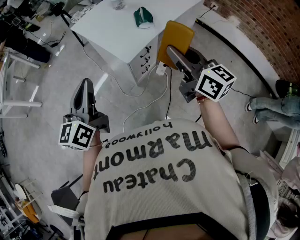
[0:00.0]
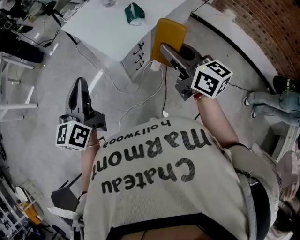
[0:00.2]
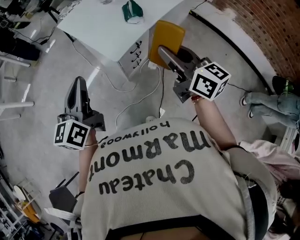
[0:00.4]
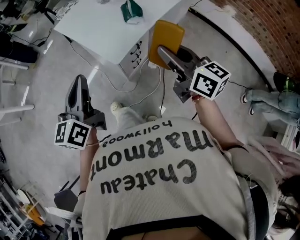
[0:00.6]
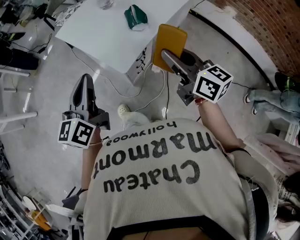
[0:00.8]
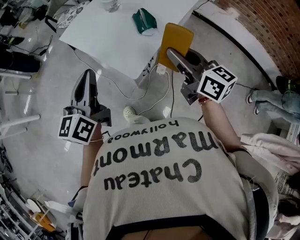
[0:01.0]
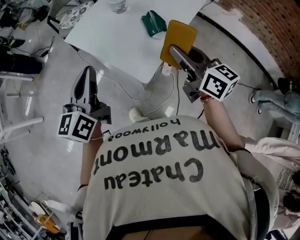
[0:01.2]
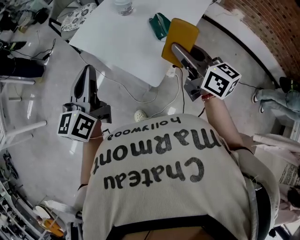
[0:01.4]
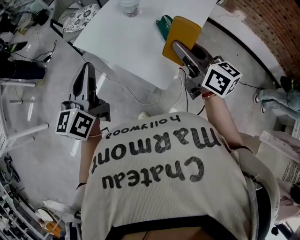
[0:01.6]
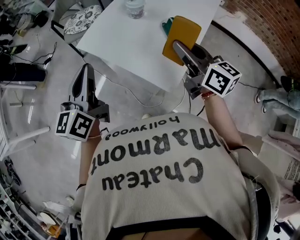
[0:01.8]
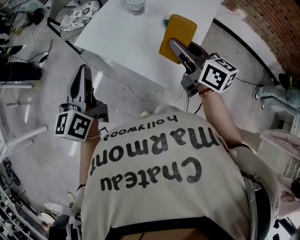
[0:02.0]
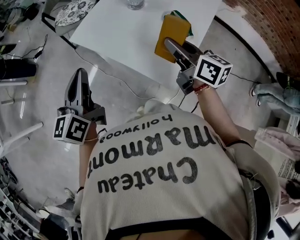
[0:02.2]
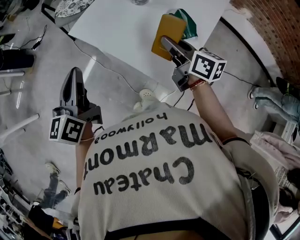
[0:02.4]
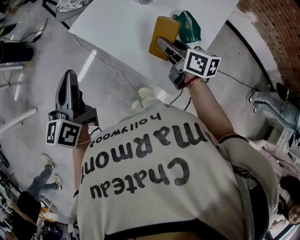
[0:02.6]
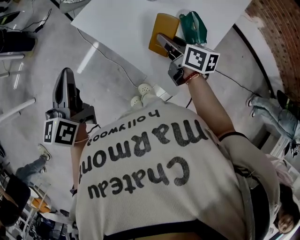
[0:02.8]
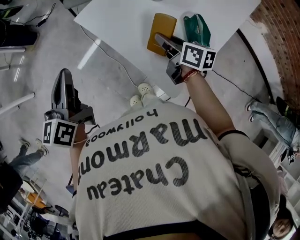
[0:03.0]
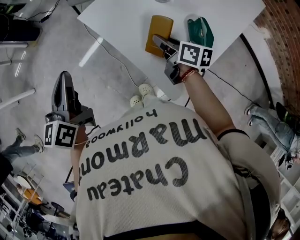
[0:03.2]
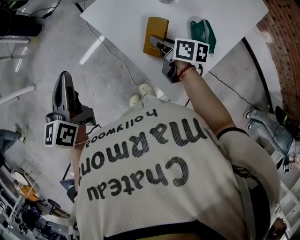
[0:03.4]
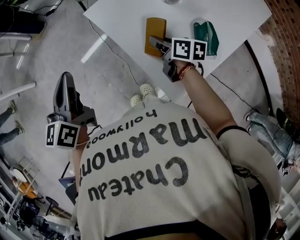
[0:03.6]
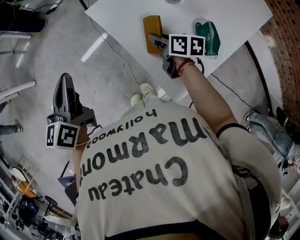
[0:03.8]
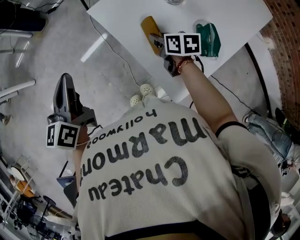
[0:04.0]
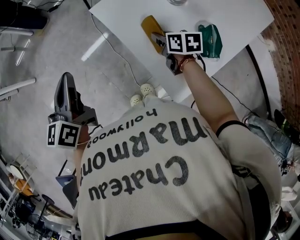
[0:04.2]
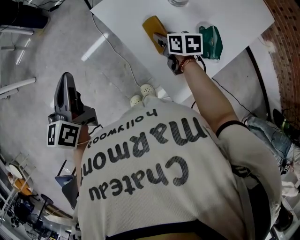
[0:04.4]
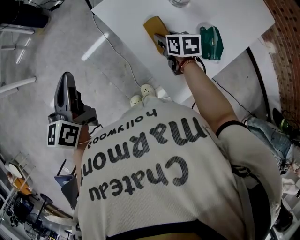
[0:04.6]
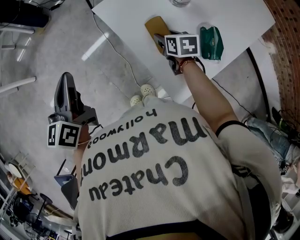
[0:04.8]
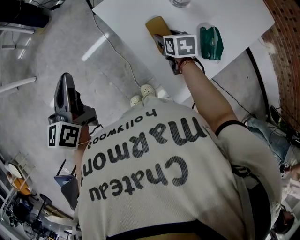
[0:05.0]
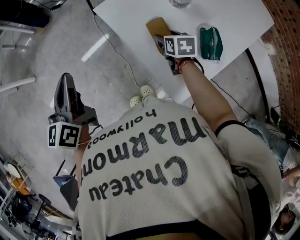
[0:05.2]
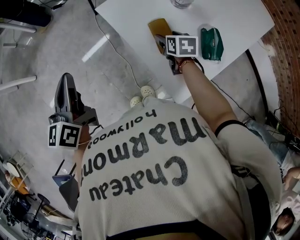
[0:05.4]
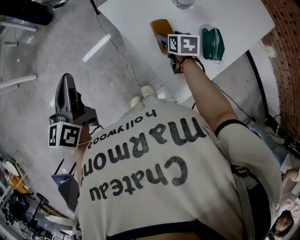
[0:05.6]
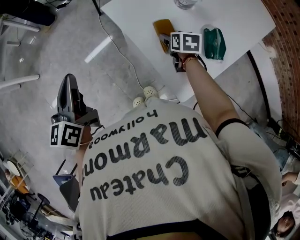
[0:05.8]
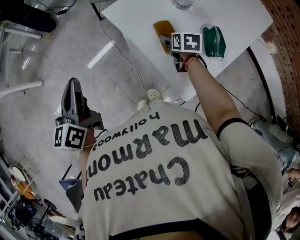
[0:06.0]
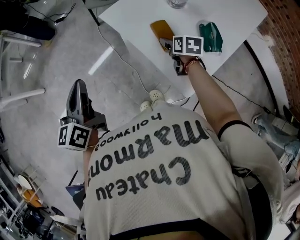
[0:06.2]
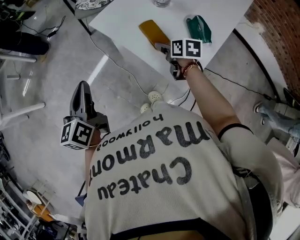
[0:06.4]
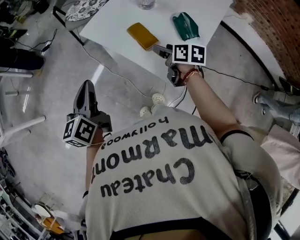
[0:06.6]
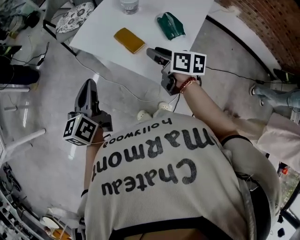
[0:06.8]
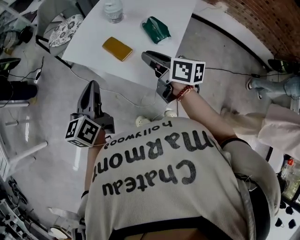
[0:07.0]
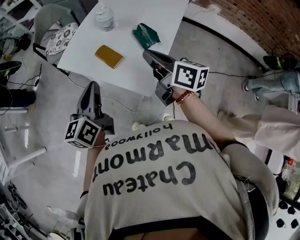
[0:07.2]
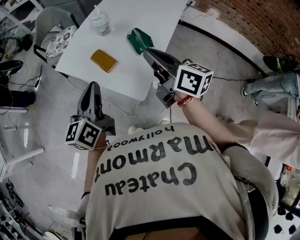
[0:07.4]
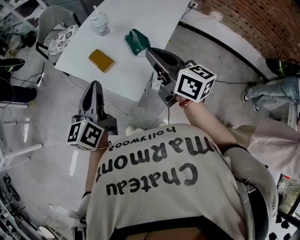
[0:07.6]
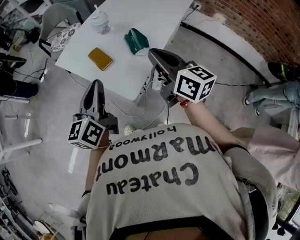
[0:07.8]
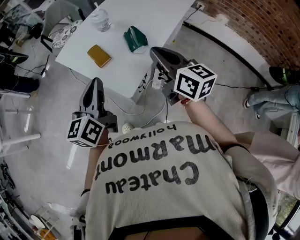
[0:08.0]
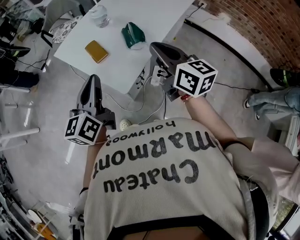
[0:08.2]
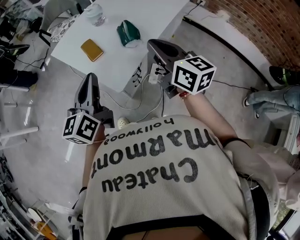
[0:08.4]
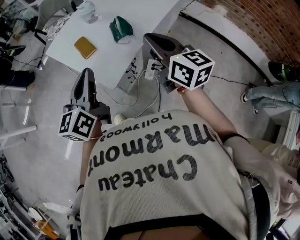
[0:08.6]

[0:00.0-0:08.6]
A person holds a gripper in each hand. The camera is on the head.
0:00.0 to 0:01.4: The grippers both shift forward by roughly 25 cm.
0:01.4 to 0:02.8: The left gripper heads to the left, forward and downward, covering approximately 20 cm; the right gripper travels forward, downward and to the left by about 25 cm, and turns by about 20 degrees.
0:02.8 to 0:04.4: The right gripper is displaced downward, forward and to the left by about 15 cm, and rotates roughly 30 degrees. Meanwhile the left gripper heads to the left, covering approximately 10 cm.
0:04.4 to 0:05.8: The right gripper opens its fingers.
0:05.8 to 0:07.2: The right gripper is displaced upward, backward and to the right by approximately 35 cm, points its fingers some 40 degrees further upward, and closes its fingers; the left gripper moves to the right, roughly 25 cm, and turns by about 40 degrees.
0:07.2 to 0:08.6: The left gripper travels to the right and backward by some 20 cm; the right gripper goes about 15 cm to the right, and rotates approximately 20 degrees.

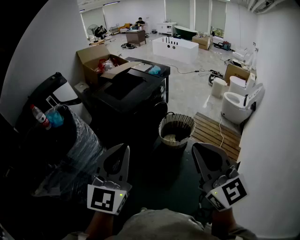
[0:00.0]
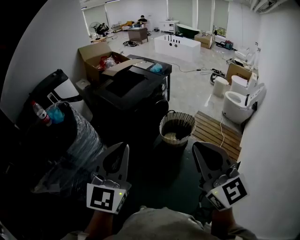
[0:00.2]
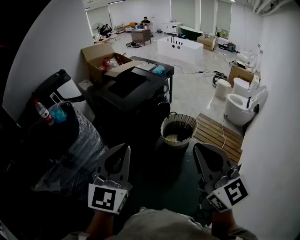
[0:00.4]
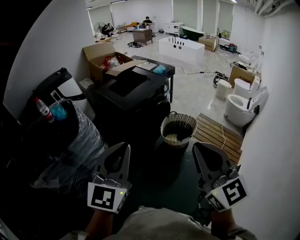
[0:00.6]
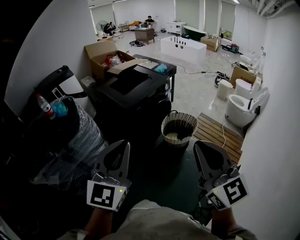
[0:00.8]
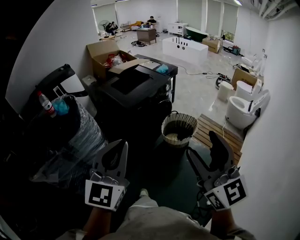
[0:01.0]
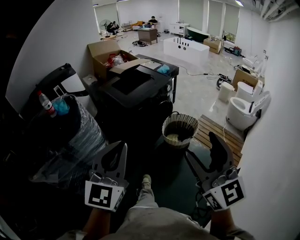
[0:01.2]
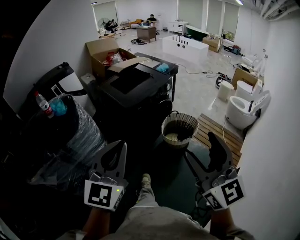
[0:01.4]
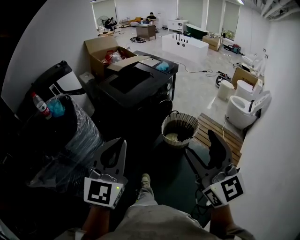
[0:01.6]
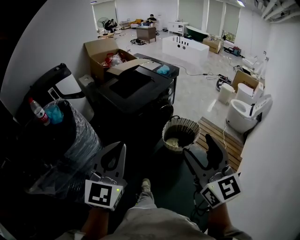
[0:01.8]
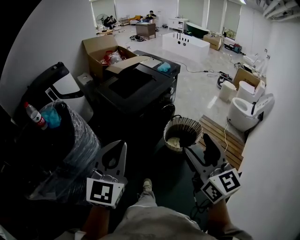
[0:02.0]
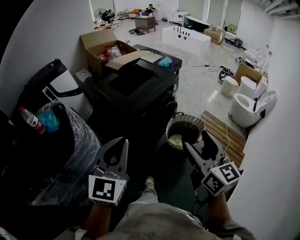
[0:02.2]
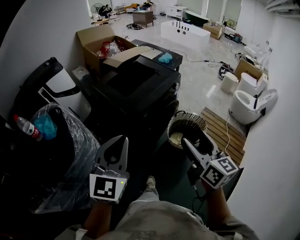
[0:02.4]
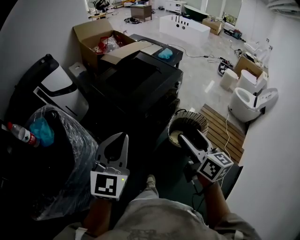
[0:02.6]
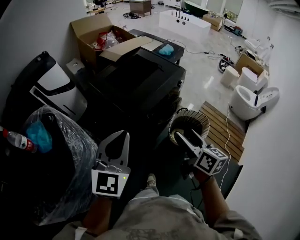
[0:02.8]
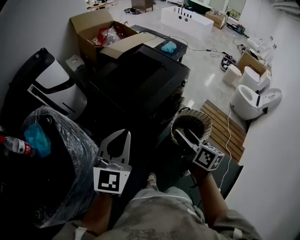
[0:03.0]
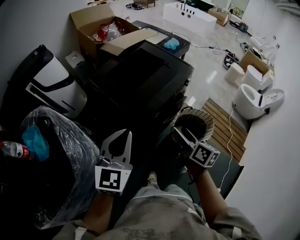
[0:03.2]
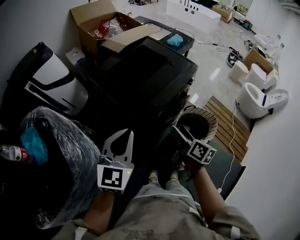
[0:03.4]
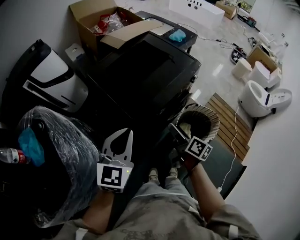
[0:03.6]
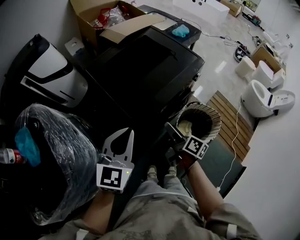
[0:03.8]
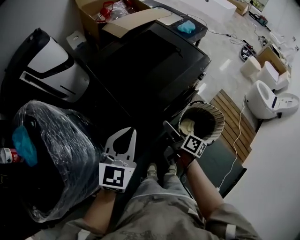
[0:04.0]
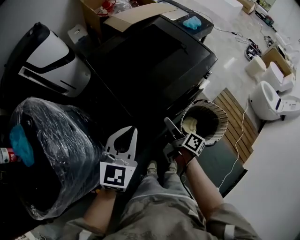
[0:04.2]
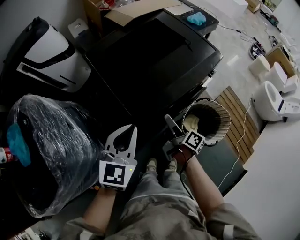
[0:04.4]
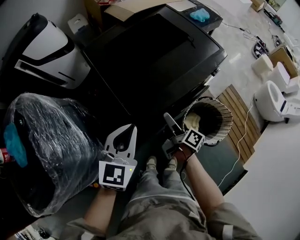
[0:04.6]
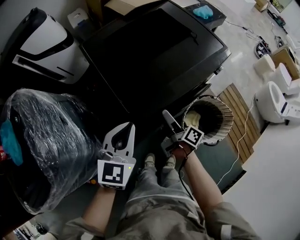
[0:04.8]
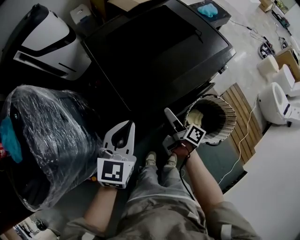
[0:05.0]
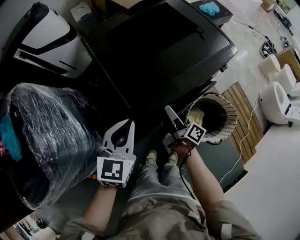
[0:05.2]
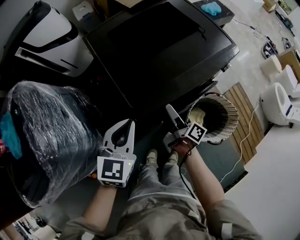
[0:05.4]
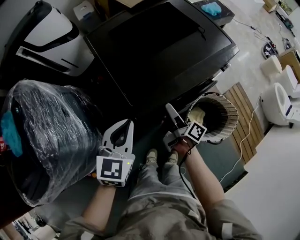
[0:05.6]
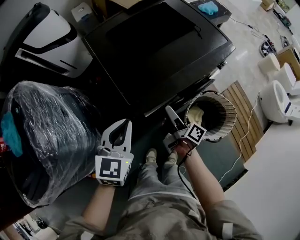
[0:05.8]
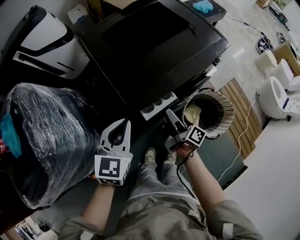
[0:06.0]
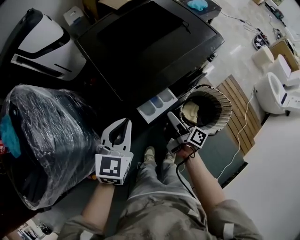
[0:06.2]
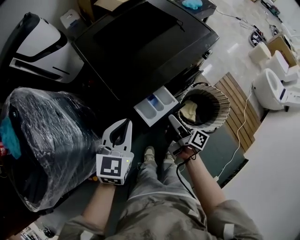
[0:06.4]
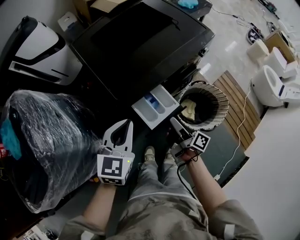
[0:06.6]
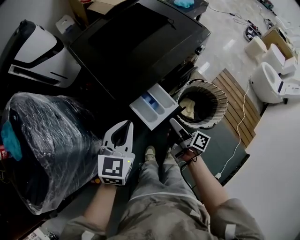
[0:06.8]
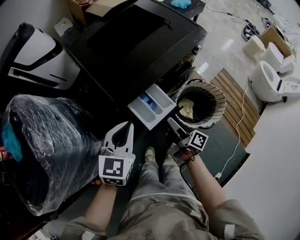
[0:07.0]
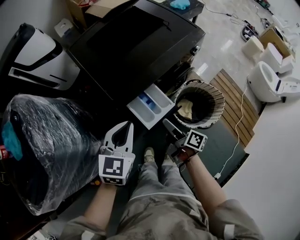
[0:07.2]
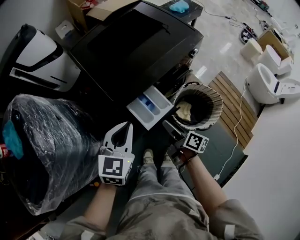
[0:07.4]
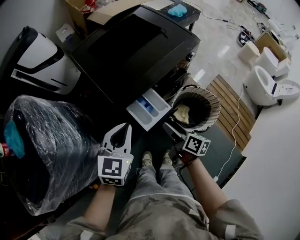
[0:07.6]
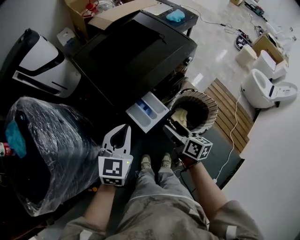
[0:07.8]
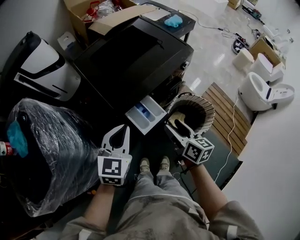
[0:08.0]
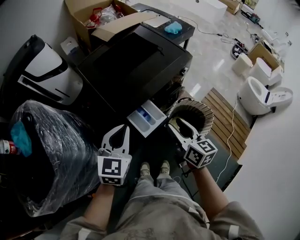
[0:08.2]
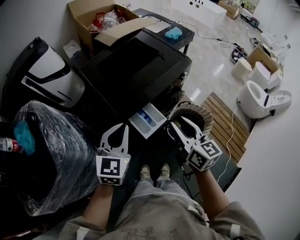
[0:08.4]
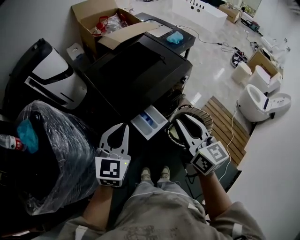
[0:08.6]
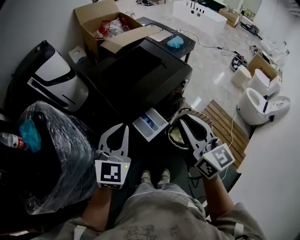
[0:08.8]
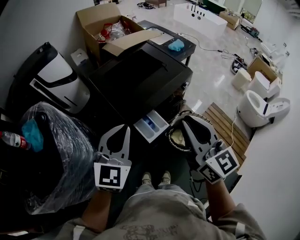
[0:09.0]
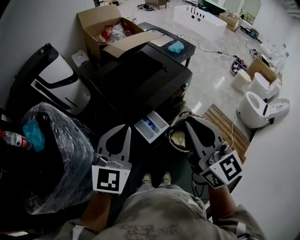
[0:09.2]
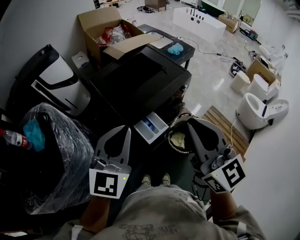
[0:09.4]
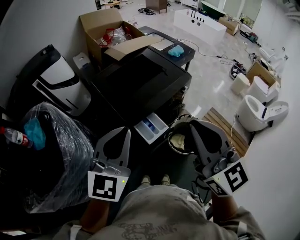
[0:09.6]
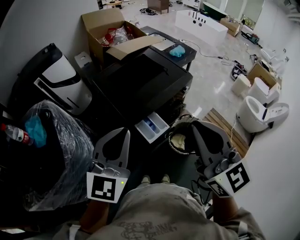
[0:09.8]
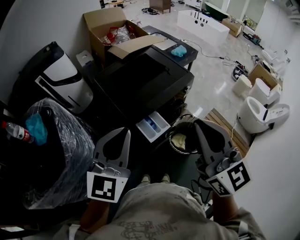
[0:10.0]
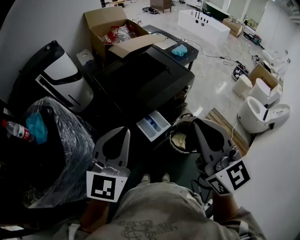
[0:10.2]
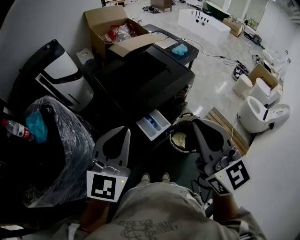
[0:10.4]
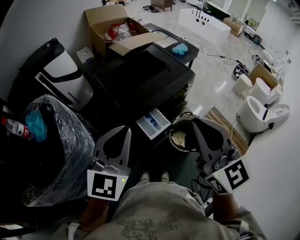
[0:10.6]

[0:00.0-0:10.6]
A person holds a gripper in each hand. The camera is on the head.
0:00.0 to 0:01.6: The right gripper opens.
0:01.6 to 0:03.0: The left gripper is displaced forward by roughly 30 cm. Meanwhile the right gripper moves forward and downward, some 40 cm, and twists about 50 degrees clockwise, seen from behind.
0:03.0 to 0:04.6: The grippers both shift downward and forward by some 25 cm. The right gripper rotates about 40 degrees.
0:04.6 to 0:06.0: The grippers stay close to where they were, moving slightly.
0:06.0 to 0:07.6: The right gripper is displaced backward and to the right by about 10 cm, and turns by some 30 degrees. The left gripper moves to the right, roughly 5 cm.
0:07.6 to 0:09.0: The right gripper goes about 35 cm upward, rolls counterclockwise, seen from behind, by roughly 60 degrees, and closes up; the left gripper is displaced upward by about 20 cm, and turns by roughly 20 degrees.
0:09.0 to 0:10.6: Both grippers travel together upward, roughly 5 cm.

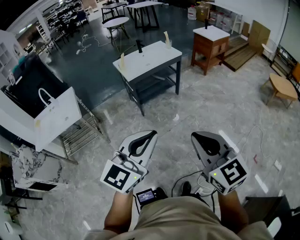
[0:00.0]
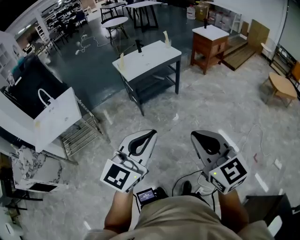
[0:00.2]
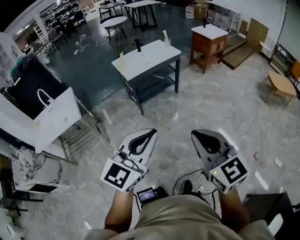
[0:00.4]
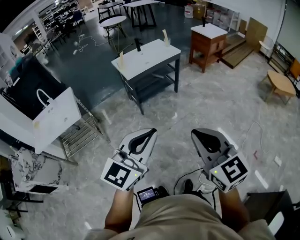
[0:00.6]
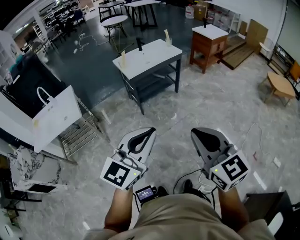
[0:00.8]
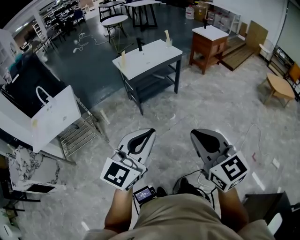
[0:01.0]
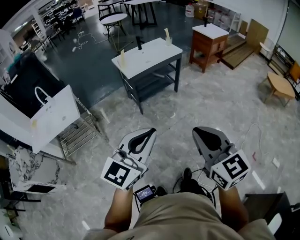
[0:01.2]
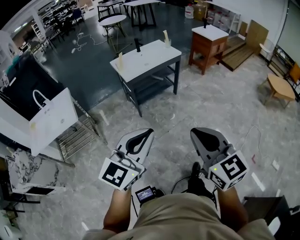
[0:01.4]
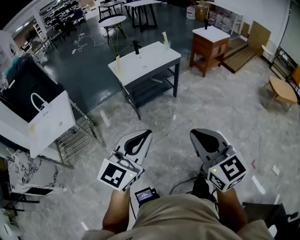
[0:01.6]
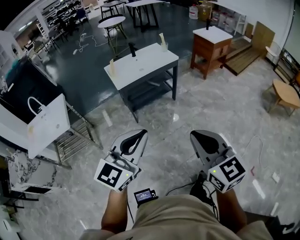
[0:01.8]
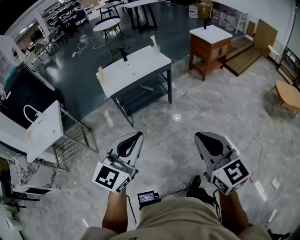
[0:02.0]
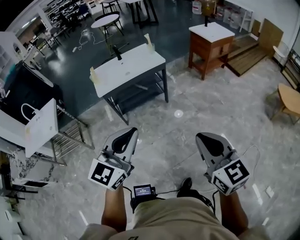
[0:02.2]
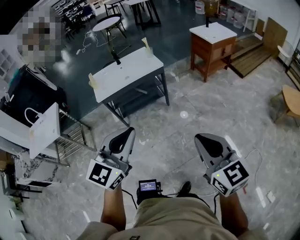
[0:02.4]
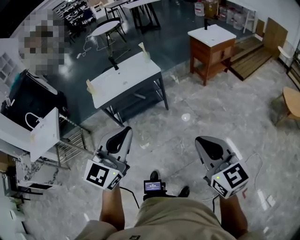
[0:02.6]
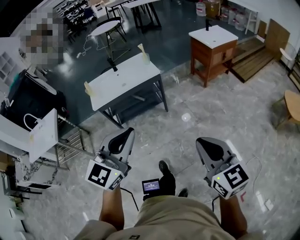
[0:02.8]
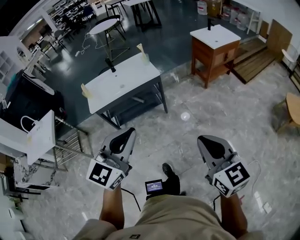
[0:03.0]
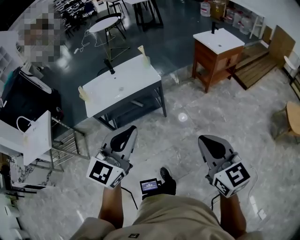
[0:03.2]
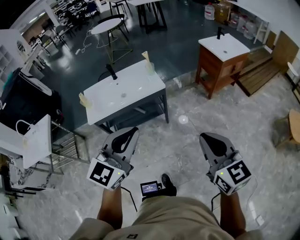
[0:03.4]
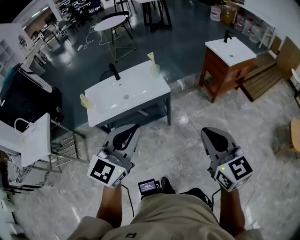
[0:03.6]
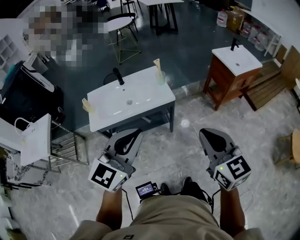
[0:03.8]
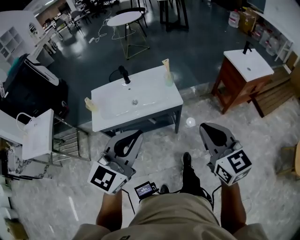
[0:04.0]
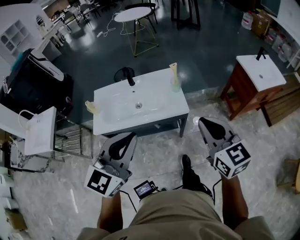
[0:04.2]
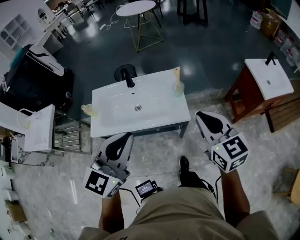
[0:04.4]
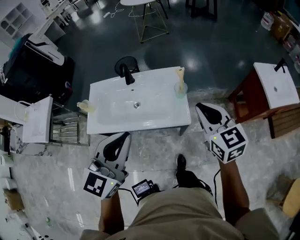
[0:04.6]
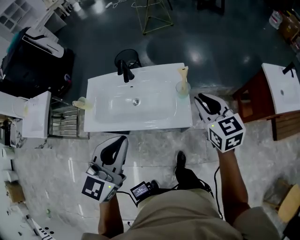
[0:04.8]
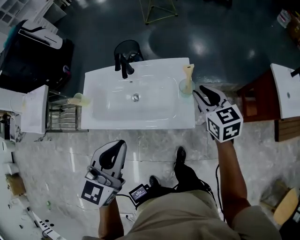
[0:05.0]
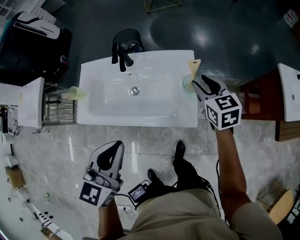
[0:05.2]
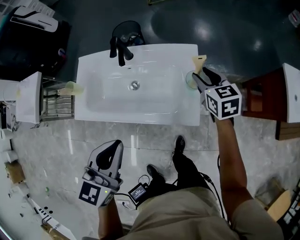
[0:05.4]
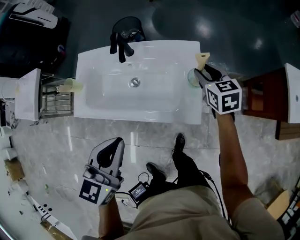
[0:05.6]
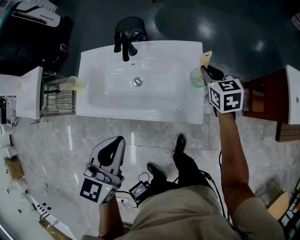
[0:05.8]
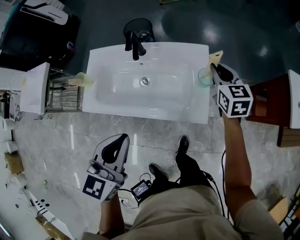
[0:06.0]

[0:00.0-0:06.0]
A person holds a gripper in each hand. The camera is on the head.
0:00.0 to 0:01.6: Both grippers move forward, approximately 10 cm.
0:01.6 to 0:03.0: The pair of grippers is taken to the right and forward, some 60 cm.
0:03.0 to 0:04.4: The pair of grippers is taken forward, some 60 cm. The left gripper changes its angle by roughly 20 degrees.
0:04.4 to 0:06.0: The right gripper goes about 40 cm forward and downward, and opens and closes again. The left gripper shifts roughly 20 cm downward and forward, and changes its angle by approximately 30 degrees.
